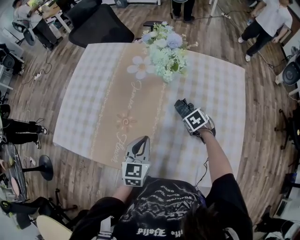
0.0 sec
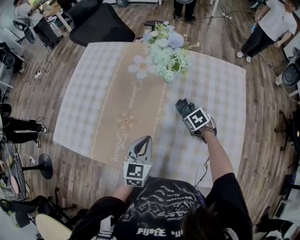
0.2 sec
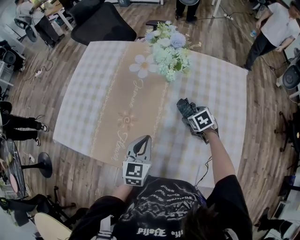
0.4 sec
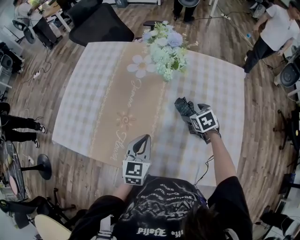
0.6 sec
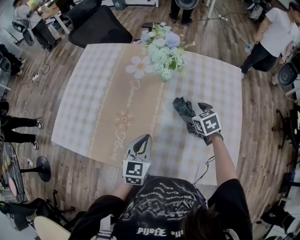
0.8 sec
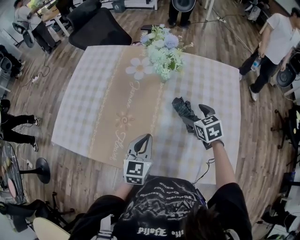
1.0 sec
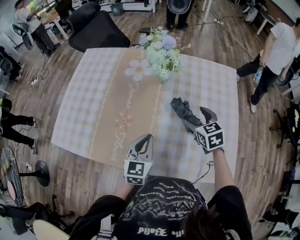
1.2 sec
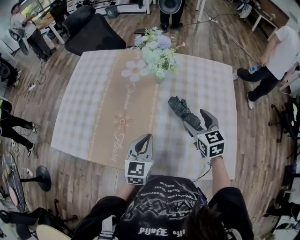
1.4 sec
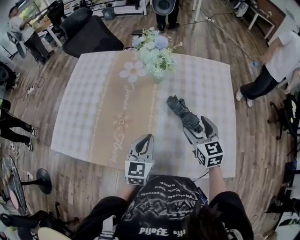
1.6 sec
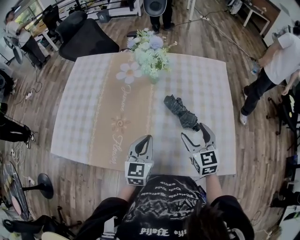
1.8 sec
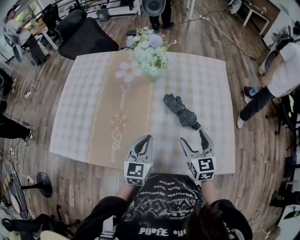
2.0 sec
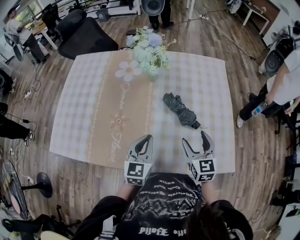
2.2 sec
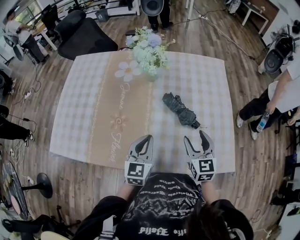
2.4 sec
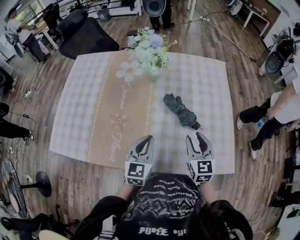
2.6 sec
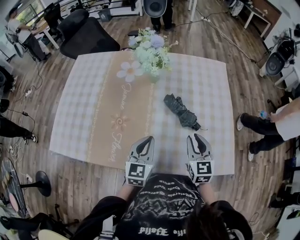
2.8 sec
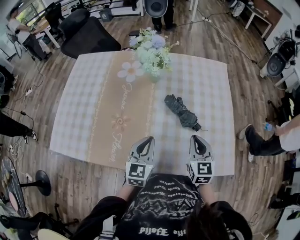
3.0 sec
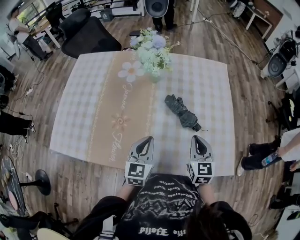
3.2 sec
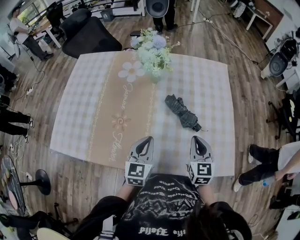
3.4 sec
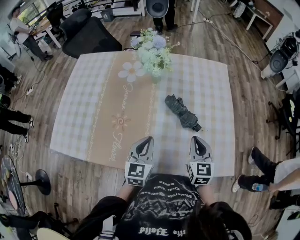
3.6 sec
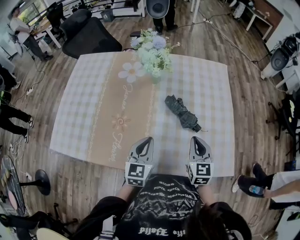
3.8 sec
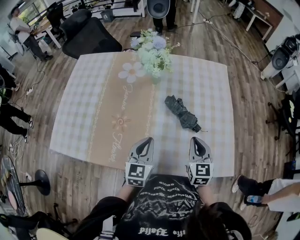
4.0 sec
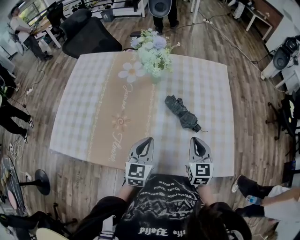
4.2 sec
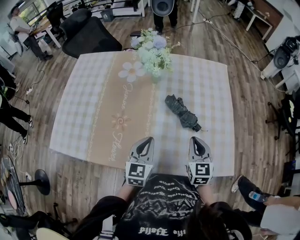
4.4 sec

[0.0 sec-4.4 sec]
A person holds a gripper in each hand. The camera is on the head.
0.0 sec to 1.4 sec: The right gripper shifts about 20 cm upward and backward, tips its fingers upward by some 40 degrees, and opens, while the left gripper ends up approximately 5 cm from where it was.
1.4 sec to 3.0 sec: The right gripper shifts approximately 10 cm backward, and closes.
3.0 sec to 4.4 sec: Both grippers stay put.

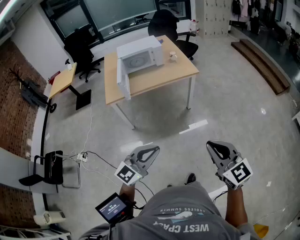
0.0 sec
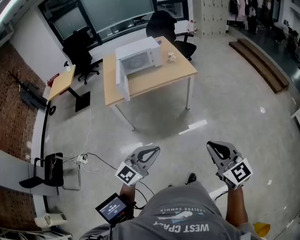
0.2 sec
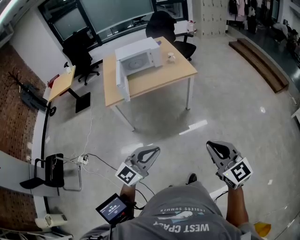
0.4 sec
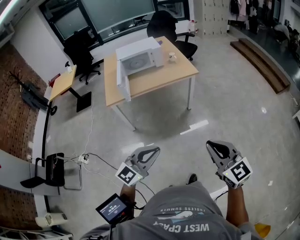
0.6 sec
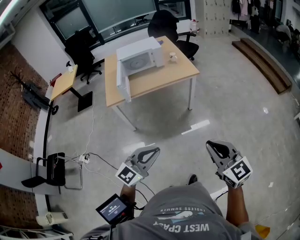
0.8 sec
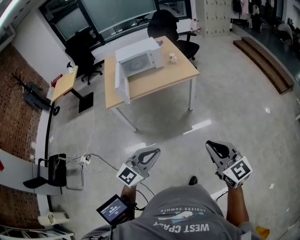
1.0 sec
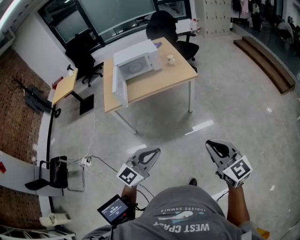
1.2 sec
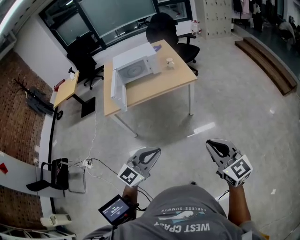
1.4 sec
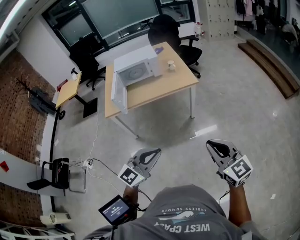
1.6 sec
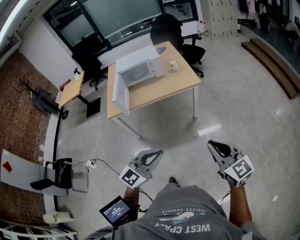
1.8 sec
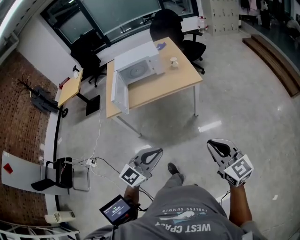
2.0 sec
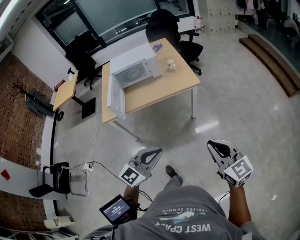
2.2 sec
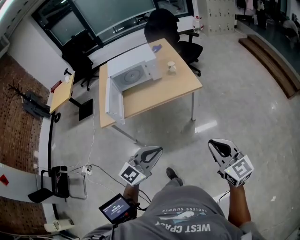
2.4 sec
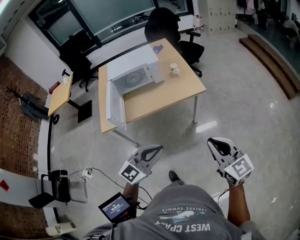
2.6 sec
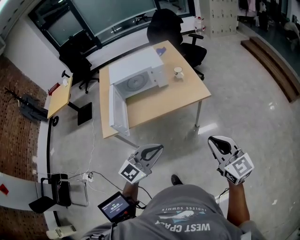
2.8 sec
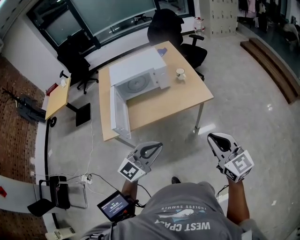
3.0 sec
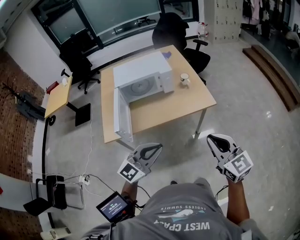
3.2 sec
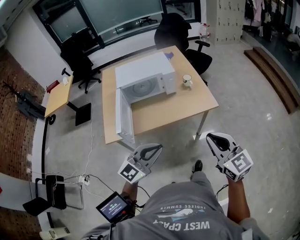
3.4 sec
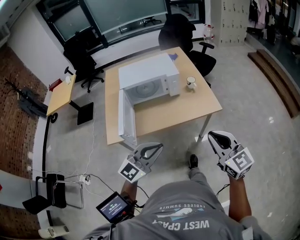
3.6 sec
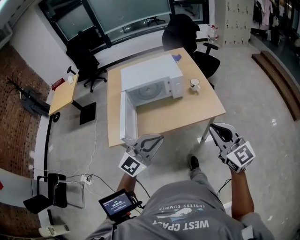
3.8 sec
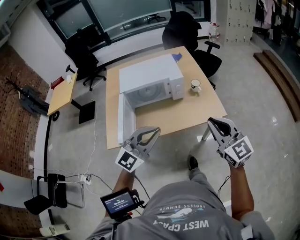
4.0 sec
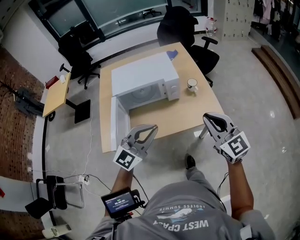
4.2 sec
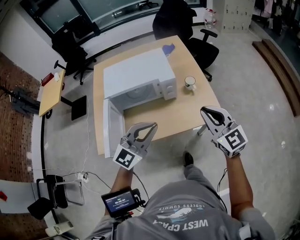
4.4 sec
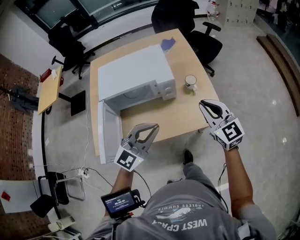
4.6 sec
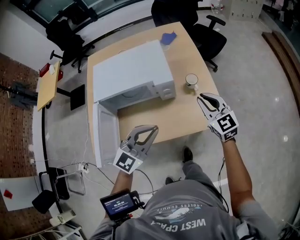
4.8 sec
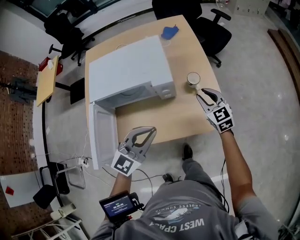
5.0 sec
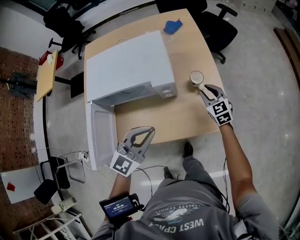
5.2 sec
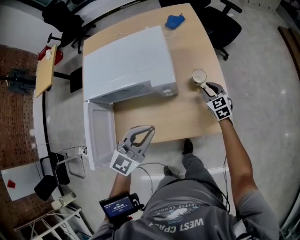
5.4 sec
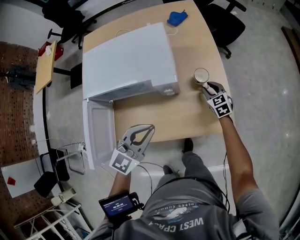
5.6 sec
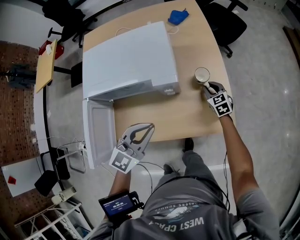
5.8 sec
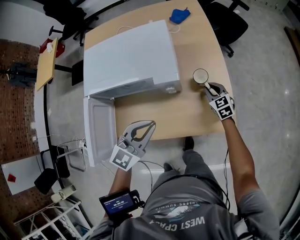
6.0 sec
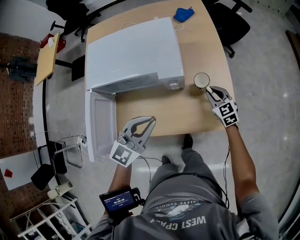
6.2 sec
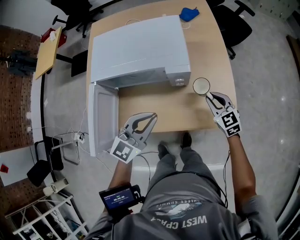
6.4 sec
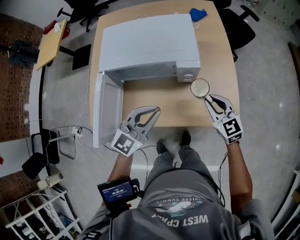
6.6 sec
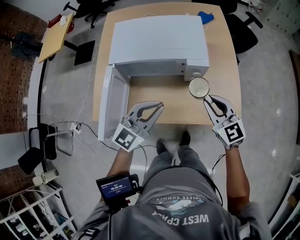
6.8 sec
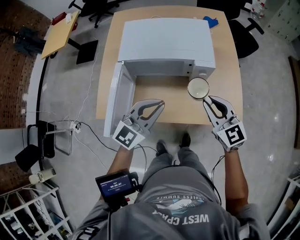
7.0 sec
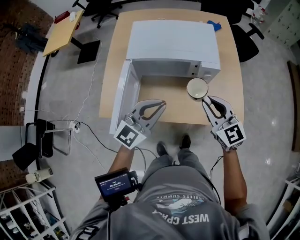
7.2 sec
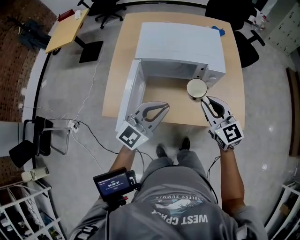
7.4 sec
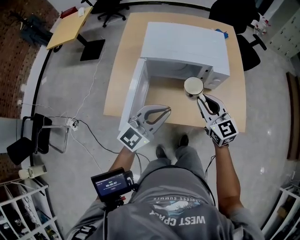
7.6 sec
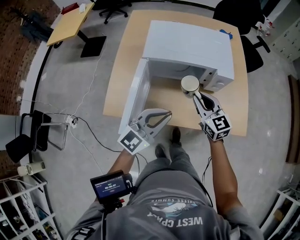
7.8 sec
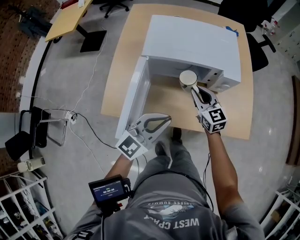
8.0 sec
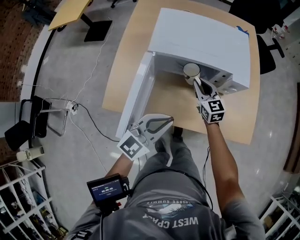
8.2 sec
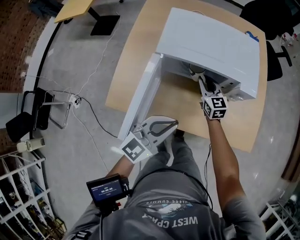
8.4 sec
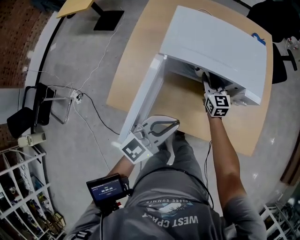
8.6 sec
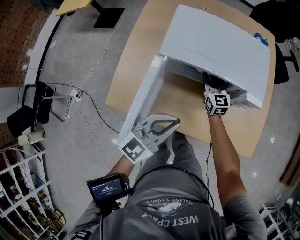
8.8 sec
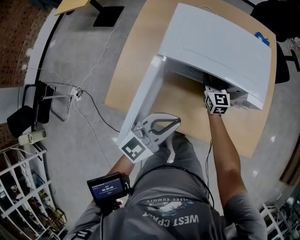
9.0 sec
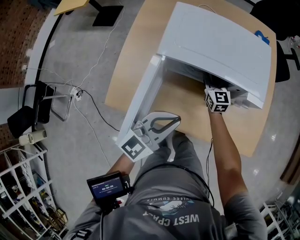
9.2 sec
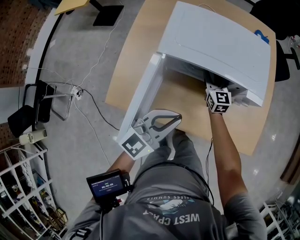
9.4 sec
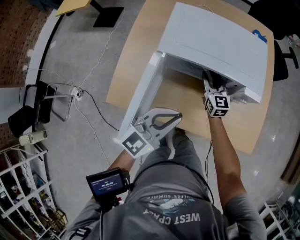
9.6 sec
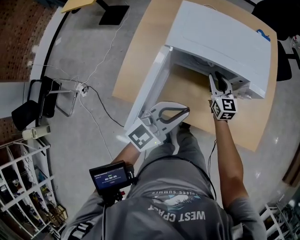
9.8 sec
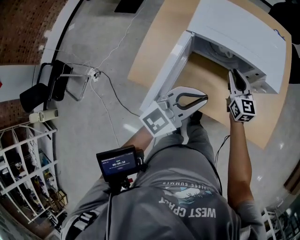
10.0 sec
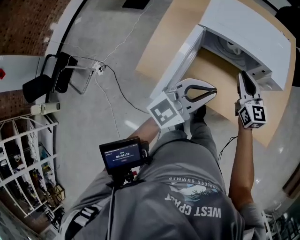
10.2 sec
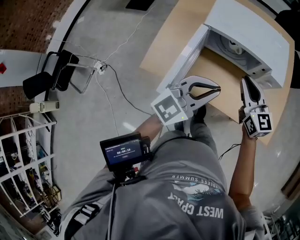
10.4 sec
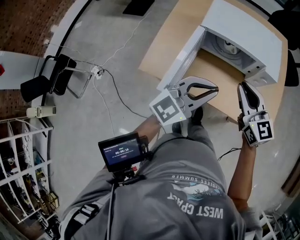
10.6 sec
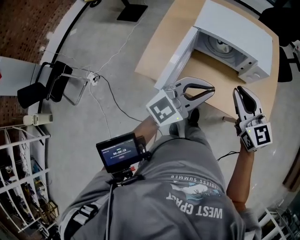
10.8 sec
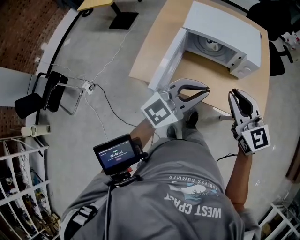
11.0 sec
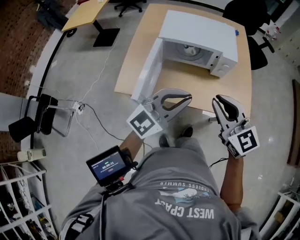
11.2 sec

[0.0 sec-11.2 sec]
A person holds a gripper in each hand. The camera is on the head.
0.0 sec to 1.6 sec: The two grippers go some 15 cm forward and to the right.
1.6 sec to 3.2 sec: The two grippers go some 40 cm forward and to the left.
3.2 sec to 4.8 sec: Both grippers travel together forward, roughly 40 cm.
4.8 sec to 6.4 sec: The right gripper is displaced downward by some 20 cm. Meanwhile the left gripper goes approximately 10 cm downward and forward.
6.4 sec to 8.0 sec: The left gripper moves to the left and backward, roughly 20 cm; the right gripper shifts roughly 30 cm to the left.
8.0 sec to 9.6 sec: The right gripper heads forward and downward, covering roughly 15 cm; the left gripper shifts roughly 5 cm forward.
9.6 sec to 11.2 sec: The right gripper goes roughly 50 cm backward and upward, while the left gripper goes some 25 cm backward and upward.

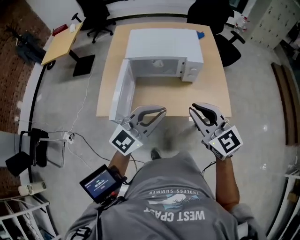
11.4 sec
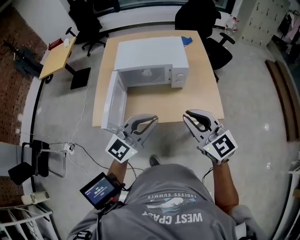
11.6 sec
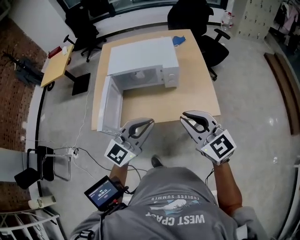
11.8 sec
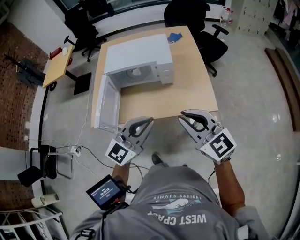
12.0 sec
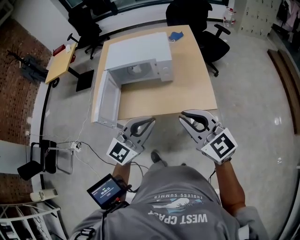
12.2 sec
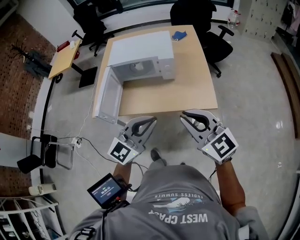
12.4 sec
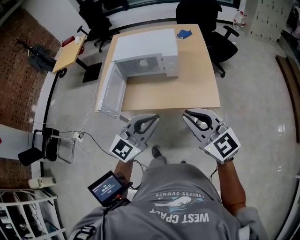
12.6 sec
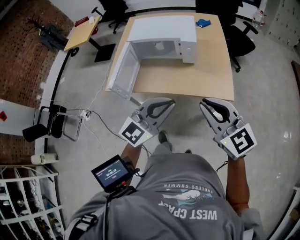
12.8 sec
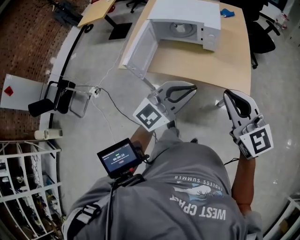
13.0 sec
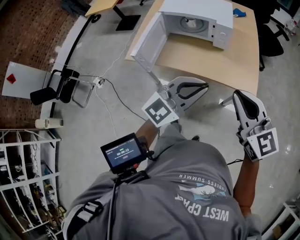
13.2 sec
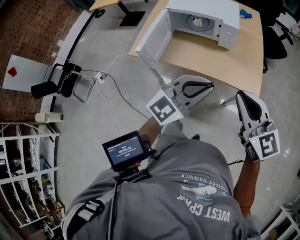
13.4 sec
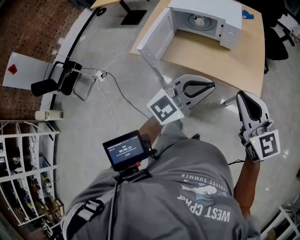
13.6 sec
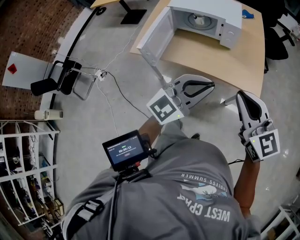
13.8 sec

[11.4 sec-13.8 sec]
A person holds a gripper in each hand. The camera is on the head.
11.4 sec to 12.6 sec: The two grippers go approximately 20 cm to the right and backward.
12.6 sec to 13.8 sec: The grippers stay close to where they were, moving slightly.

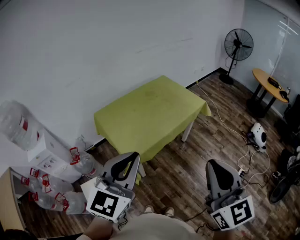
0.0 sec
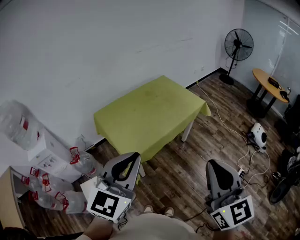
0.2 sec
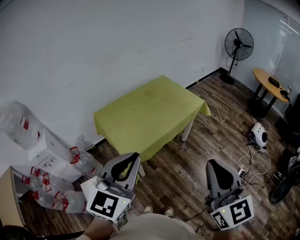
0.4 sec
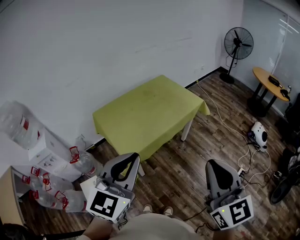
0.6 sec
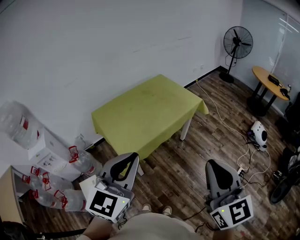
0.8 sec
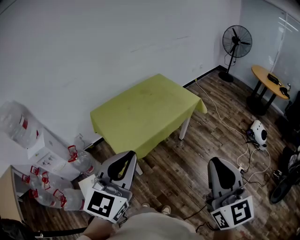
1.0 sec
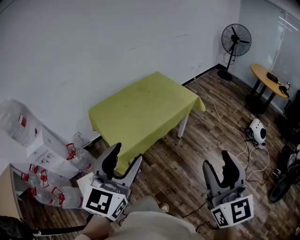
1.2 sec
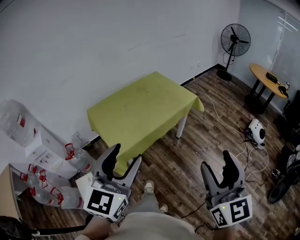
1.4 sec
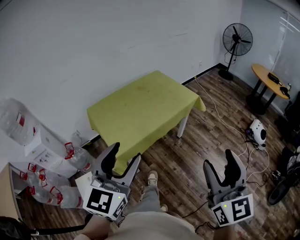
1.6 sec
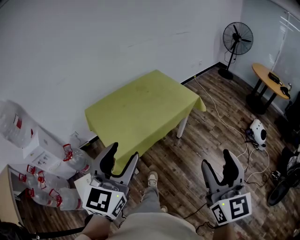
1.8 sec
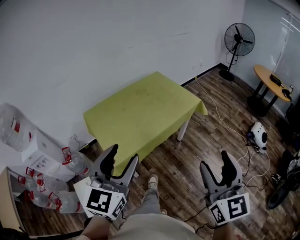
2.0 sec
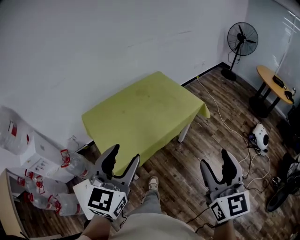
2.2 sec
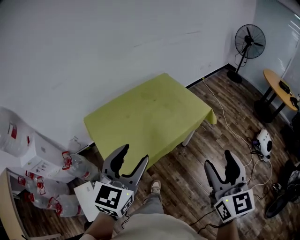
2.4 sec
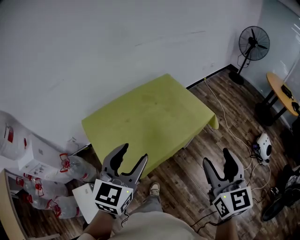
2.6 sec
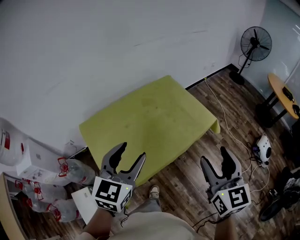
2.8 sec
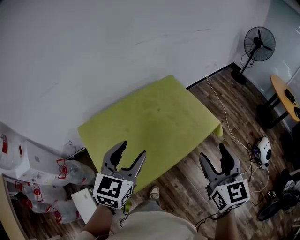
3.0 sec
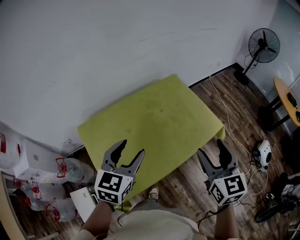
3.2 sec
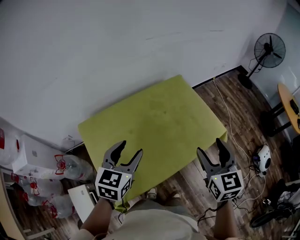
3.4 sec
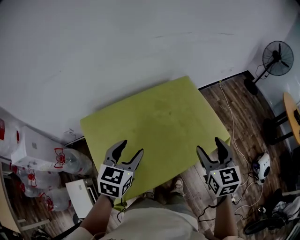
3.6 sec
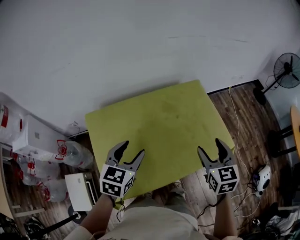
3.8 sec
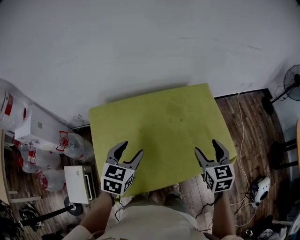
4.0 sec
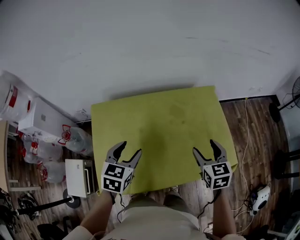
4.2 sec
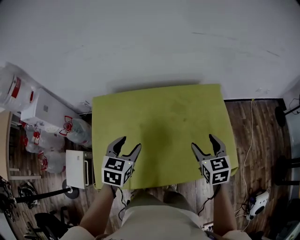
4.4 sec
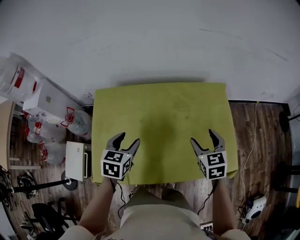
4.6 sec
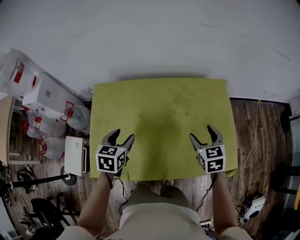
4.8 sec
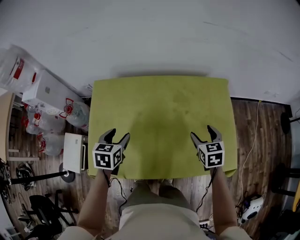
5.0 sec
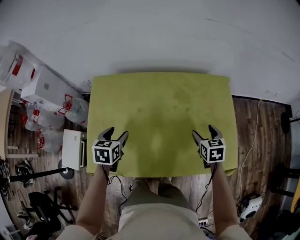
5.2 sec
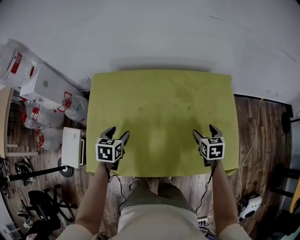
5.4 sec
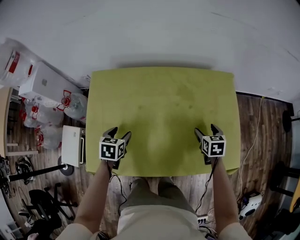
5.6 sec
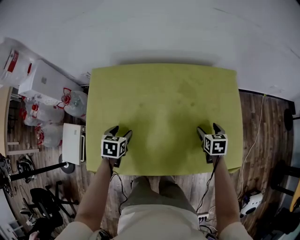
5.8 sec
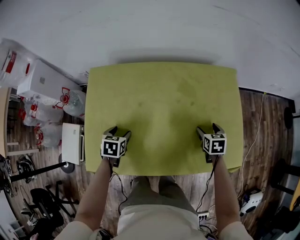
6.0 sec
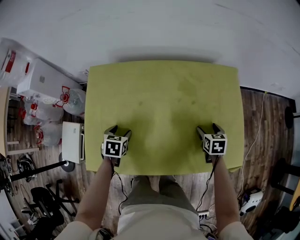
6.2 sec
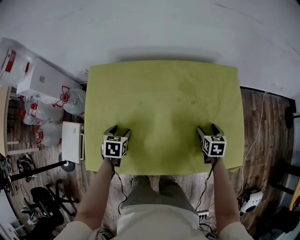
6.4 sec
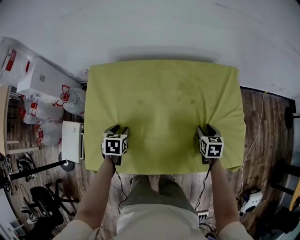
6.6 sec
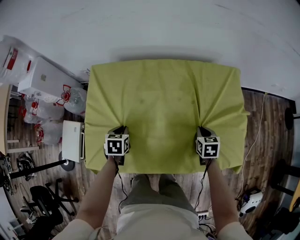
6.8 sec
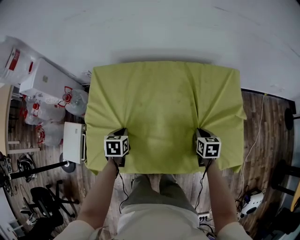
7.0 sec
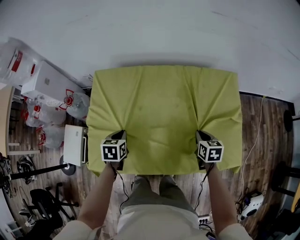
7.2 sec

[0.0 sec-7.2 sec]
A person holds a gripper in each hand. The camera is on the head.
0.0 sec to 1.4 sec: The two grippers go some 10 cm to the right. The left gripper opens up; the right gripper opens its fingers.
1.4 sec to 2.8 sec: The grippers both shift forward by some 40 cm.
2.8 sec to 4.4 sec: The right gripper moves about 40 cm, and rotates some 40 degrees. Meanwhile the left gripper moves downward, approximately 20 cm, and rotates approximately 40 degrees.
4.4 sec to 5.8 sec: The grippers both shift downward by roughly 20 cm. The left gripper changes its angle by roughly 20 degrees.
5.8 sec to 7.2 sec: The left gripper closes up. The right gripper ends up about 5 cm from where it was, and closes its fingers.
